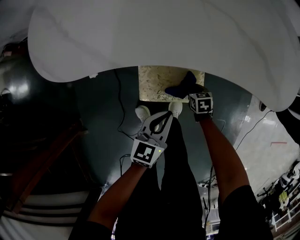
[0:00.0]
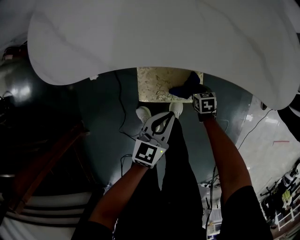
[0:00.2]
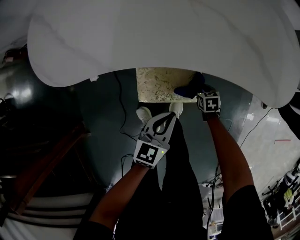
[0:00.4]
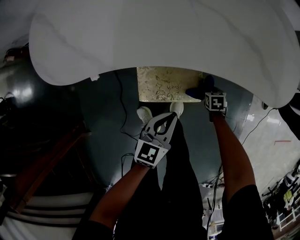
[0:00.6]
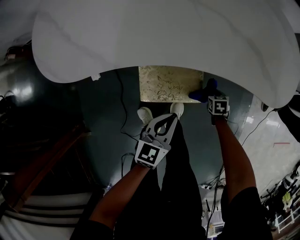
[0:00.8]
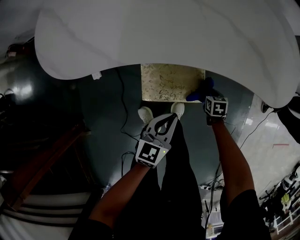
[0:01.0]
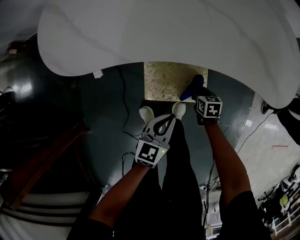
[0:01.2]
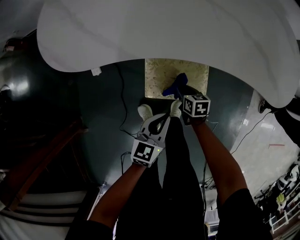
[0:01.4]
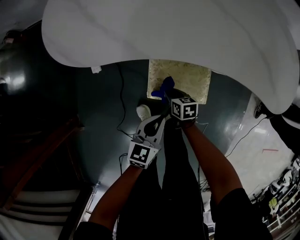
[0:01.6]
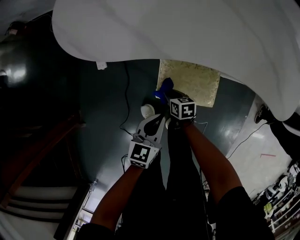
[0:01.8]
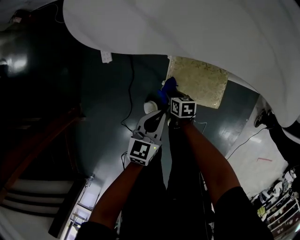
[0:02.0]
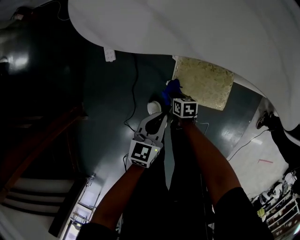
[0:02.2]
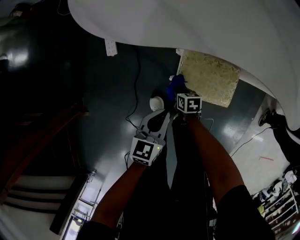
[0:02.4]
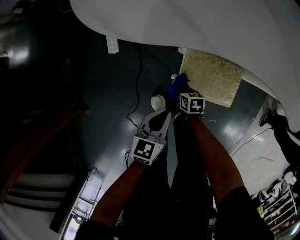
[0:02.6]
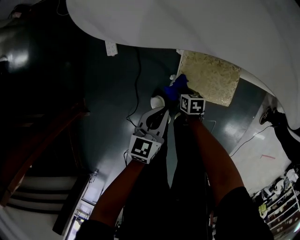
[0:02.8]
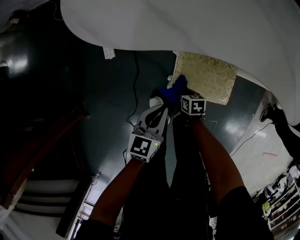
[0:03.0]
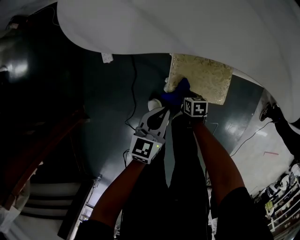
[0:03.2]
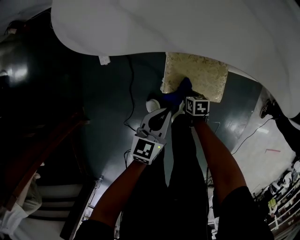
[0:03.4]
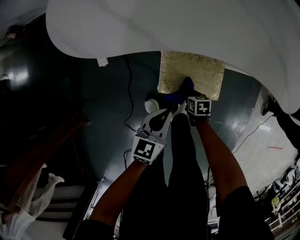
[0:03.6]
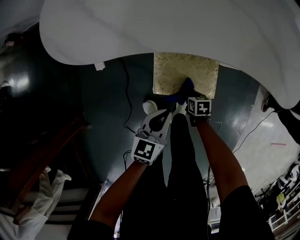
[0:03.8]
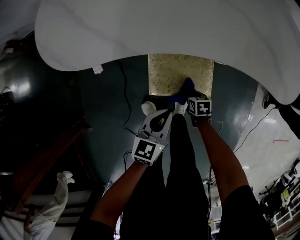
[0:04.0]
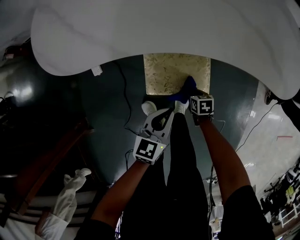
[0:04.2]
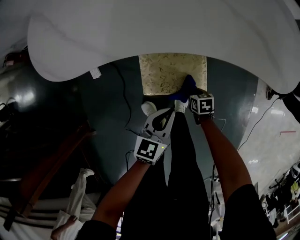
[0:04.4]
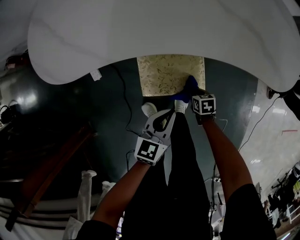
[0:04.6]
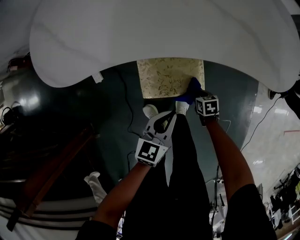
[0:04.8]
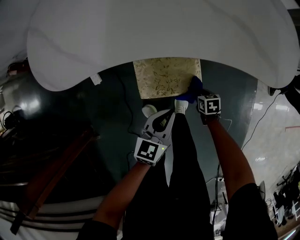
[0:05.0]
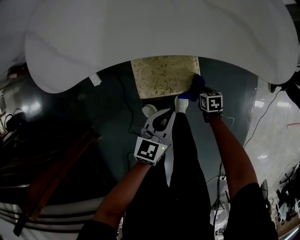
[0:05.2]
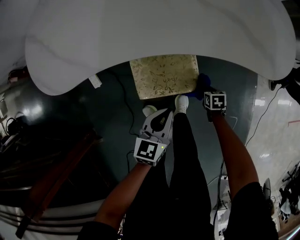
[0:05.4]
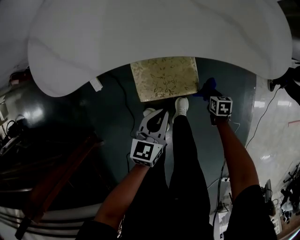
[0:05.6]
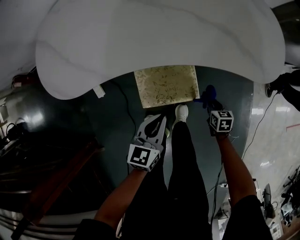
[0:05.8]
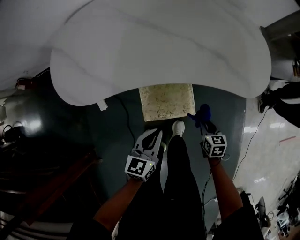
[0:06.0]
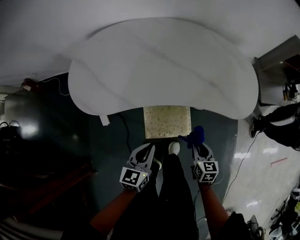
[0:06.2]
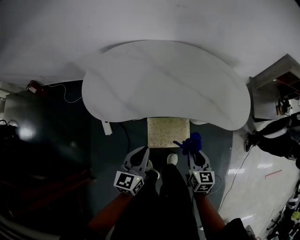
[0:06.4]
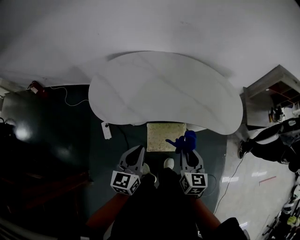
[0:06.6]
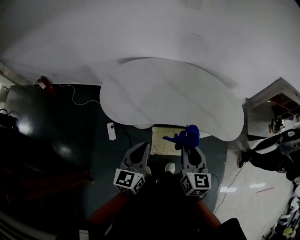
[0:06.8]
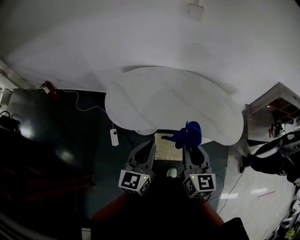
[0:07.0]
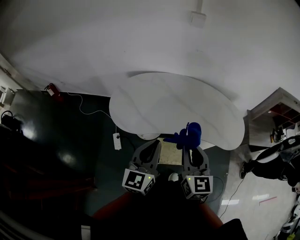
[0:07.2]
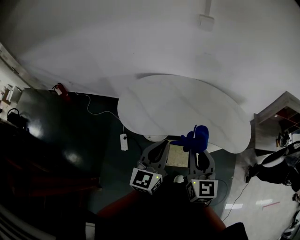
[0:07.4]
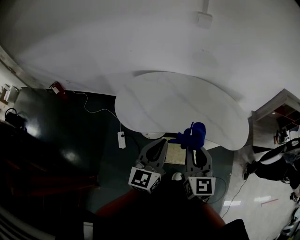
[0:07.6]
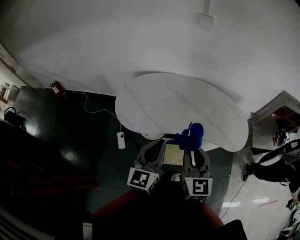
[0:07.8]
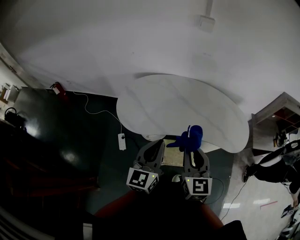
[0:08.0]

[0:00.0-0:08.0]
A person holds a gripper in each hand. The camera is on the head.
0:00.0 to 0:01.6: The left gripper travels to the left by roughly 5 cm, while the right gripper travels to the left and upward by some 20 cm.
0:01.6 to 0:03.2: The left gripper is displaced to the left by roughly 10 cm. Meanwhile the right gripper moves downward, about 5 cm, and reaches some 10 cm to the left, then returns.
0:03.2 to 0:04.8: The two grippers go approximately 20 cm to the right.
0:04.8 to 0:06.4: The left gripper goes about 30 cm upward and to the left. The right gripper heads upward, covering approximately 40 cm, and tilts its fingers approximately 30 degrees upward.
0:06.4 to 0:08.0: The left gripper moves upward, approximately 25 cm, and swivels some 20 degrees. Meanwhile the right gripper heads upward and to the left, covering some 35 cm, and rotates about 30 degrees.

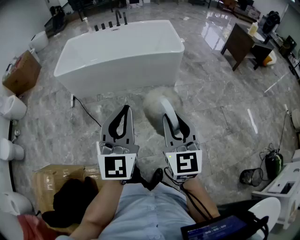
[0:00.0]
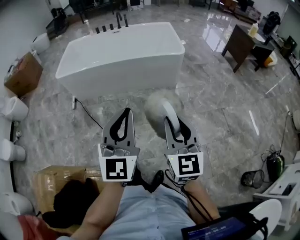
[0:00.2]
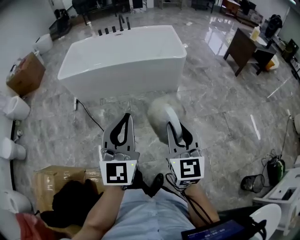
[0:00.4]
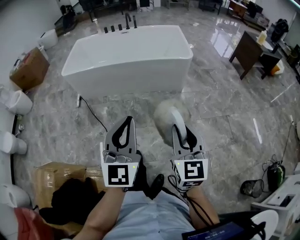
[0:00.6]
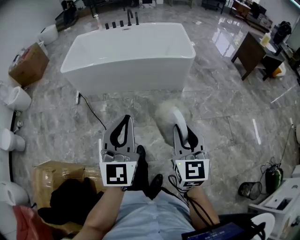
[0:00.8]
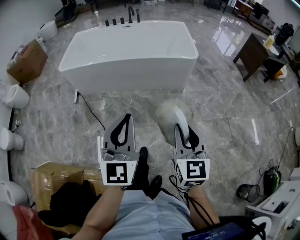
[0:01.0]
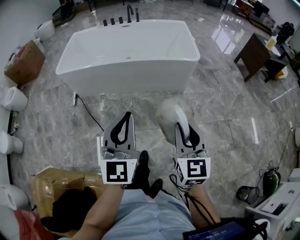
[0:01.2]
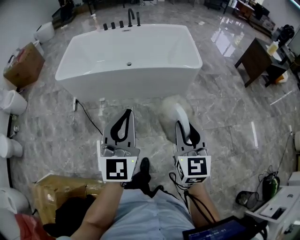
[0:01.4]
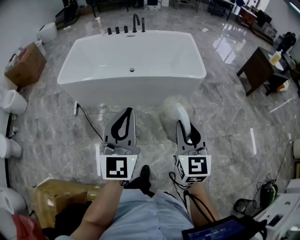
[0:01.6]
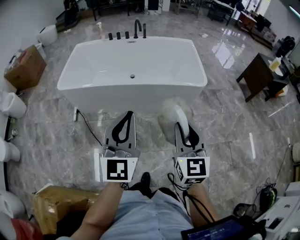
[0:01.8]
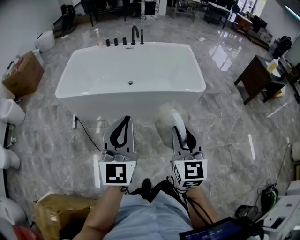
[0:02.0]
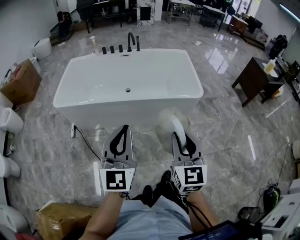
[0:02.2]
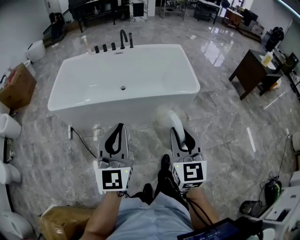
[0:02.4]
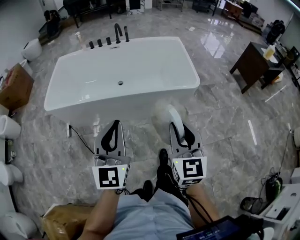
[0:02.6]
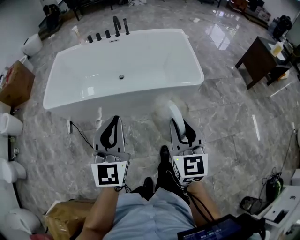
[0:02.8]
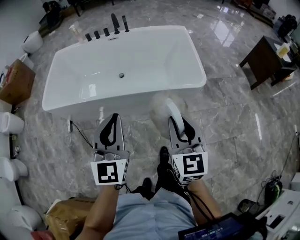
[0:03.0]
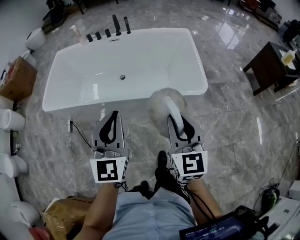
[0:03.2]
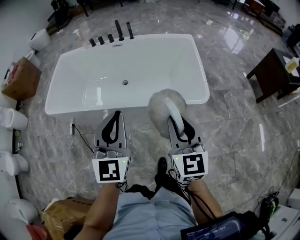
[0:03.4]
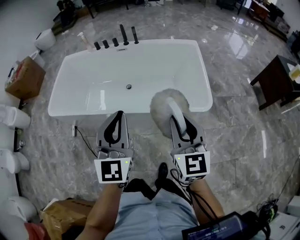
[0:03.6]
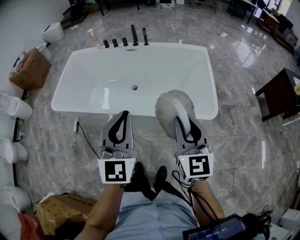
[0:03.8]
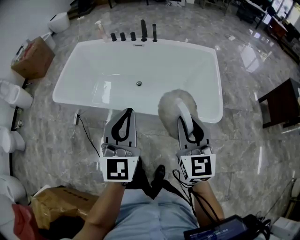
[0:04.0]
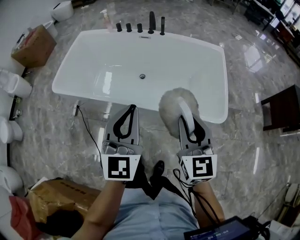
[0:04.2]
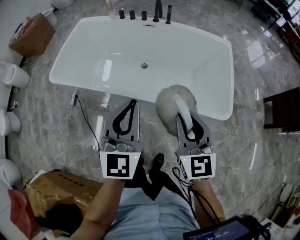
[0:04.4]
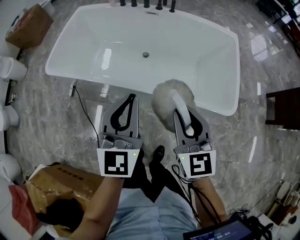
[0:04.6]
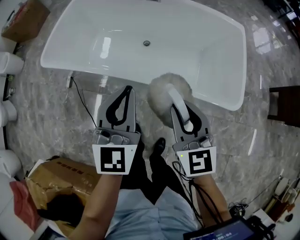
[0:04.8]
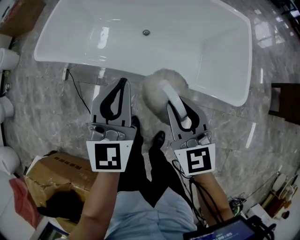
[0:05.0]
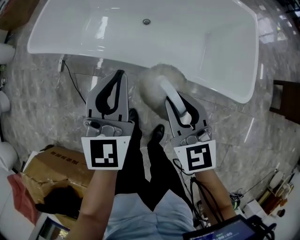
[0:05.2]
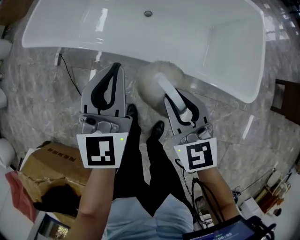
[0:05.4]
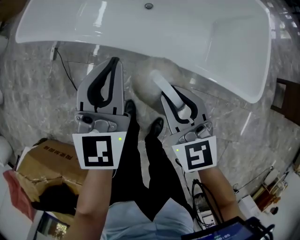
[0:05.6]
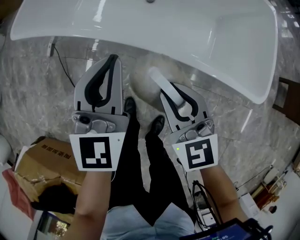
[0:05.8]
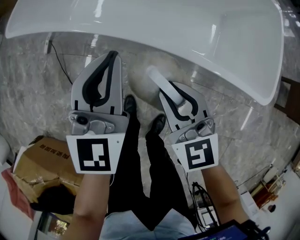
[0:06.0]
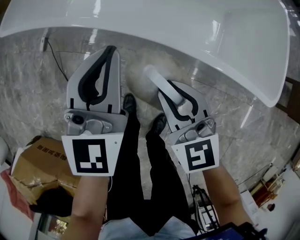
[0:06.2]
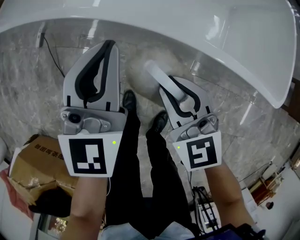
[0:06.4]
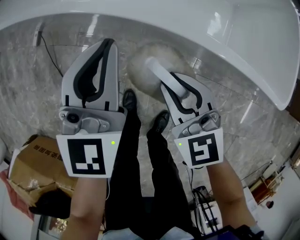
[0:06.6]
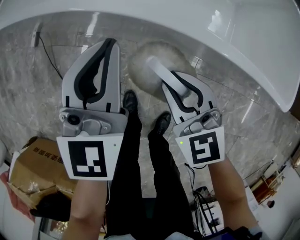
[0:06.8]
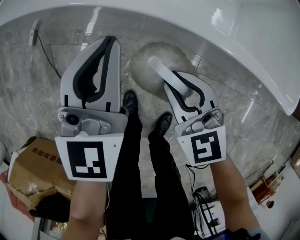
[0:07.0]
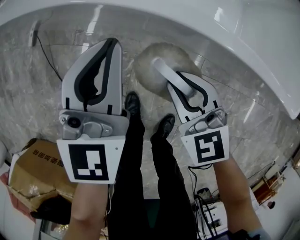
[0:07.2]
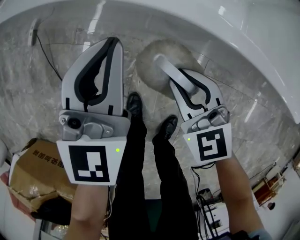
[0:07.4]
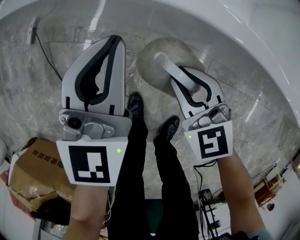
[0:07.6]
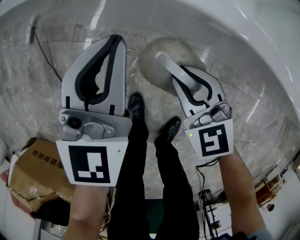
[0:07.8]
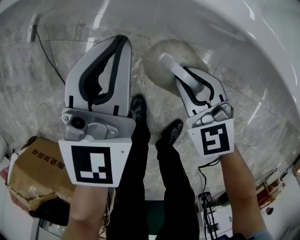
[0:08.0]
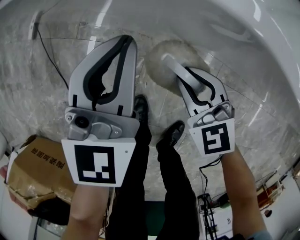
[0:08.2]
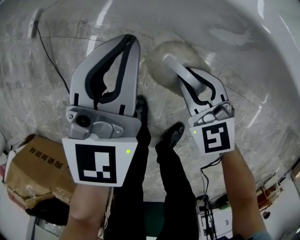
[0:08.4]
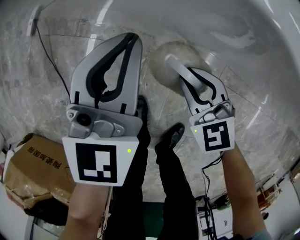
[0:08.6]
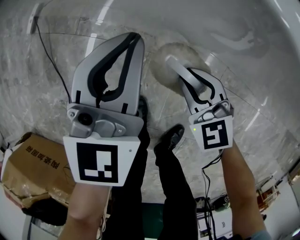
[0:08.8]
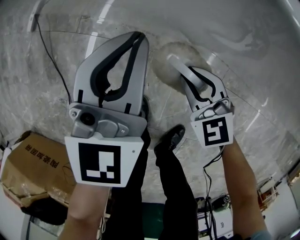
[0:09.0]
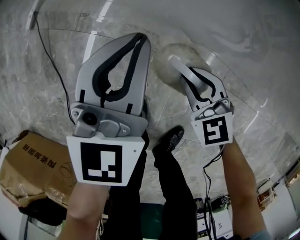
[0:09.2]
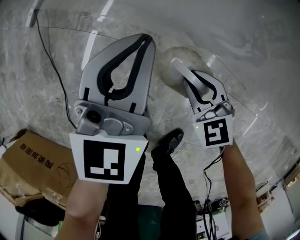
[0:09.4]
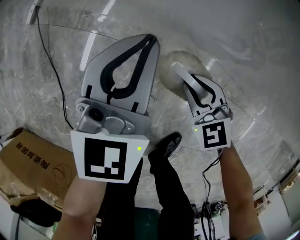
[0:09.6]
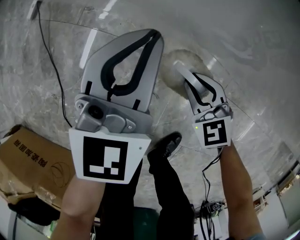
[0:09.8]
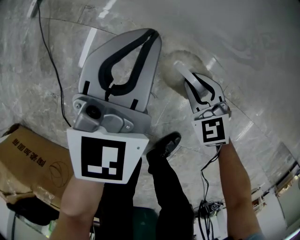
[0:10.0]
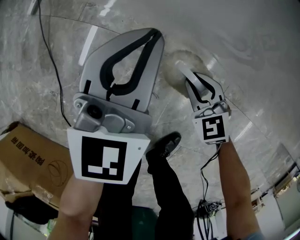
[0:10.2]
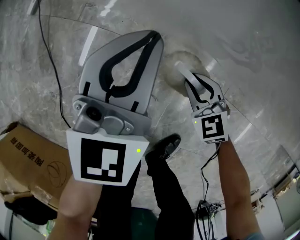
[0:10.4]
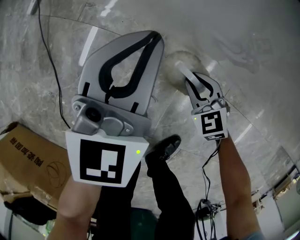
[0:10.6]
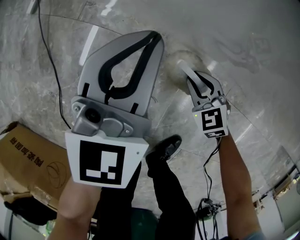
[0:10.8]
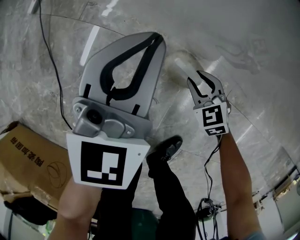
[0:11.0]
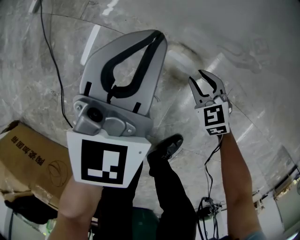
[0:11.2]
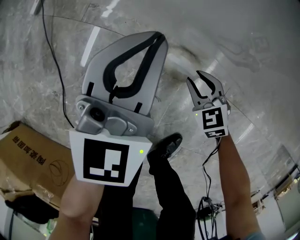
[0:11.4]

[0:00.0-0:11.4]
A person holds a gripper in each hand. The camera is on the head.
0:00.0 to 0:01.4: The two grippers go about 20 cm forward.
0:01.4 to 0:02.8: The grippers both shift forward by about 25 cm.
0:02.8 to 0:04.2: Both grippers move forward, approximately 25 cm.
0:04.2 to 0:05.6: The left gripper heads downward, covering about 25 cm. The right gripper is displaced downward and to the left by about 30 cm, and changes its angle by approximately 20 degrees.
0:05.6 to 0:07.2: The two grippers go roughly 25 cm downward.
0:07.2 to 0:08.6: The grippers both shift downward by approximately 15 cm.
0:08.6 to 0:10.0: The right gripper heads downward, covering roughly 10 cm. Meanwhile the left gripper shifts approximately 5 cm downward.

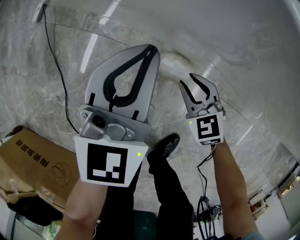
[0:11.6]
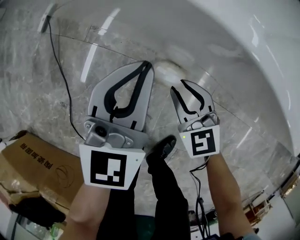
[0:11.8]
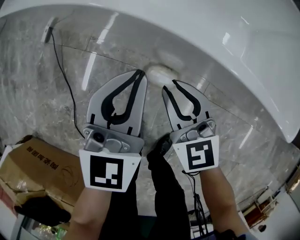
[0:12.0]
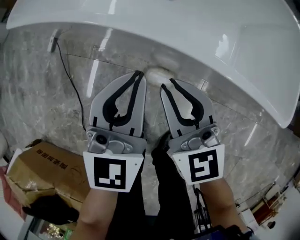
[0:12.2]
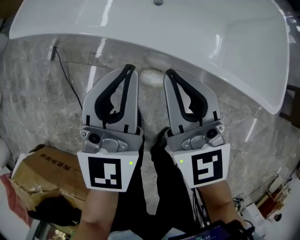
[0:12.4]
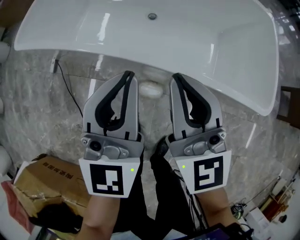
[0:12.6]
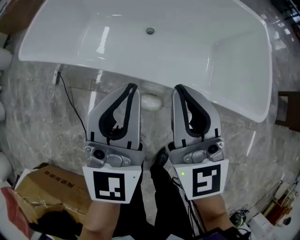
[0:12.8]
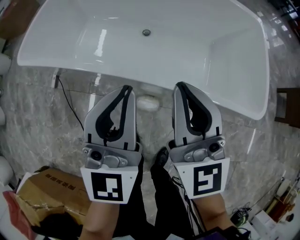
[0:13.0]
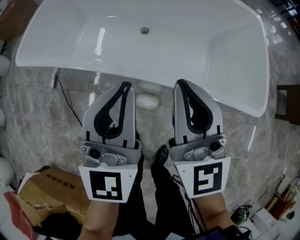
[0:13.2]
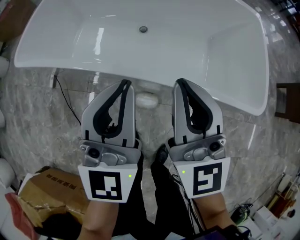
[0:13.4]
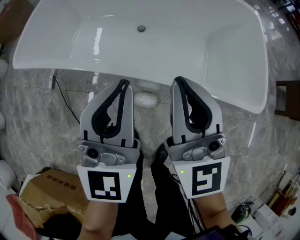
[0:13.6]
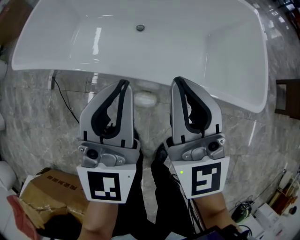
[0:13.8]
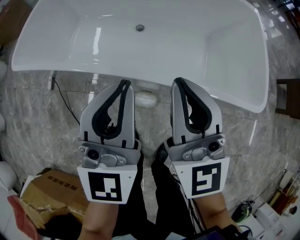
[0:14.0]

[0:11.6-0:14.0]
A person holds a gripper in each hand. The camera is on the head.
0:11.6 to 0:12.8: Both grippers move upward, approximately 50 cm. The right gripper angles its fingers upward, by approximately 40 degrees, and closes up.
0:12.8 to 0:14.0: The grippers stay close to where they were, moving slightly.

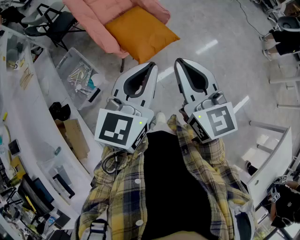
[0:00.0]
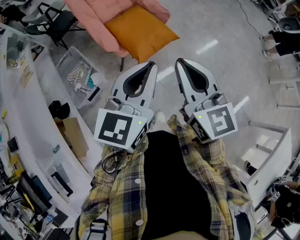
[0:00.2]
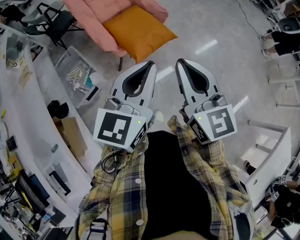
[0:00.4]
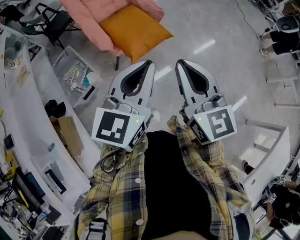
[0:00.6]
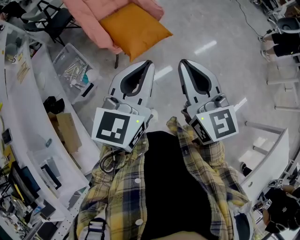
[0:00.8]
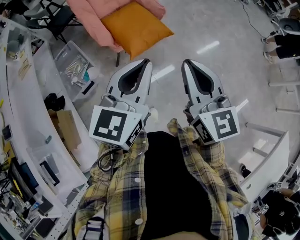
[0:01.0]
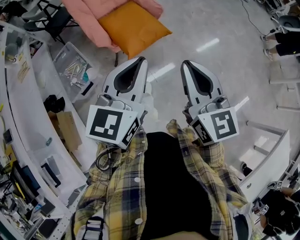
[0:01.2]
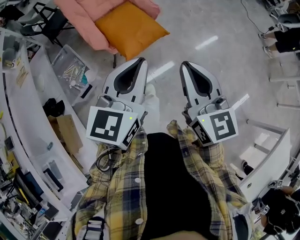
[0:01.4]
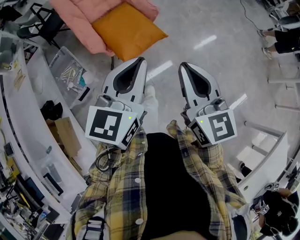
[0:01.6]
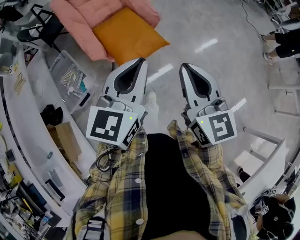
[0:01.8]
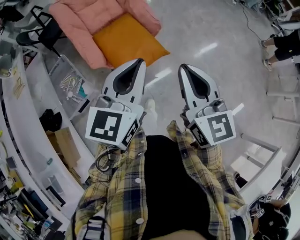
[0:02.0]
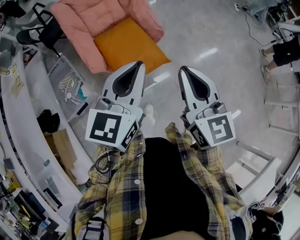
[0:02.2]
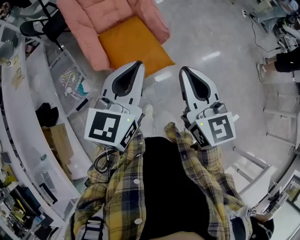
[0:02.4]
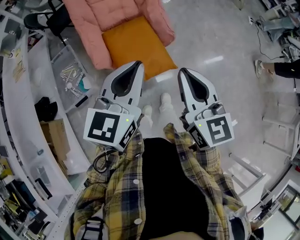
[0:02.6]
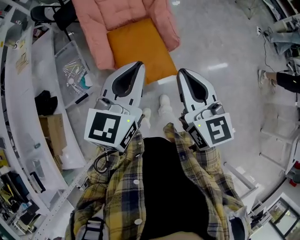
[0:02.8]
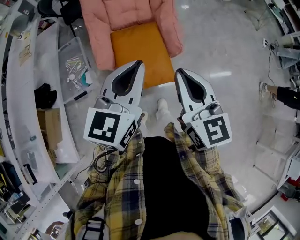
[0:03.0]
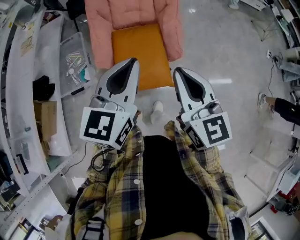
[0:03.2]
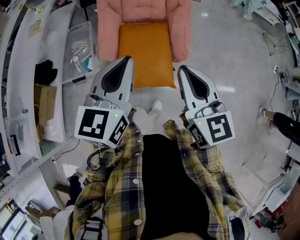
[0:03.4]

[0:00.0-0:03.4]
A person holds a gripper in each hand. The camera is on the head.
0:00.0 to 0:01.6: The left gripper goes roughly 10 cm to the right and forward. Meanwhile the right gripper is displaced to the right by roughly 10 cm.
0:01.6 to 0:03.4: The left gripper ends up approximately 30 cm from where it was, and swivels some 40 degrees. Meanwhile the right gripper ends up about 35 cm from where it was, and turns by approximately 40 degrees.
